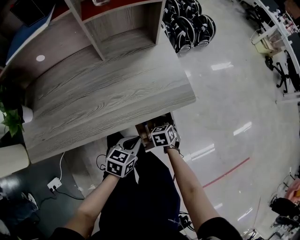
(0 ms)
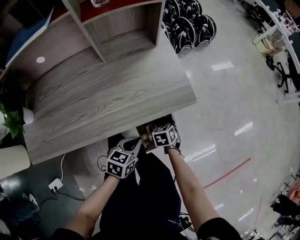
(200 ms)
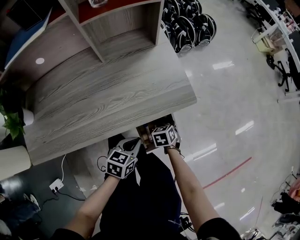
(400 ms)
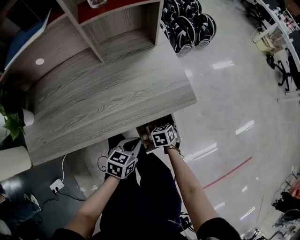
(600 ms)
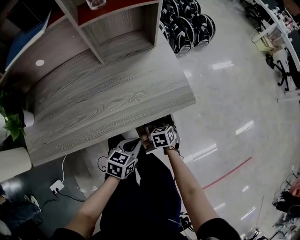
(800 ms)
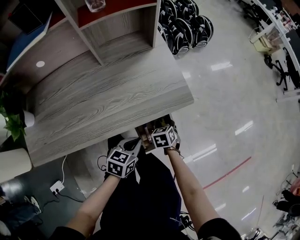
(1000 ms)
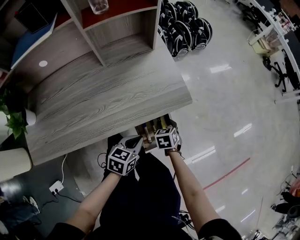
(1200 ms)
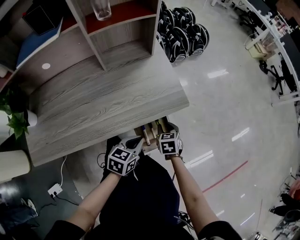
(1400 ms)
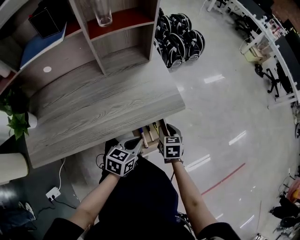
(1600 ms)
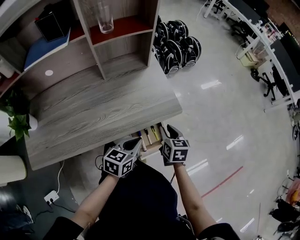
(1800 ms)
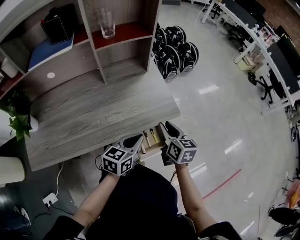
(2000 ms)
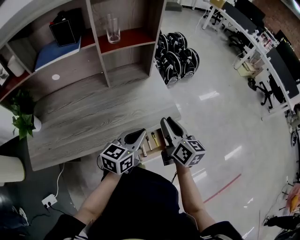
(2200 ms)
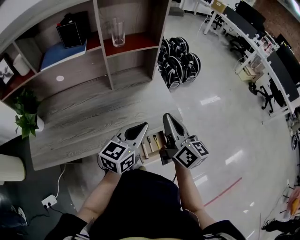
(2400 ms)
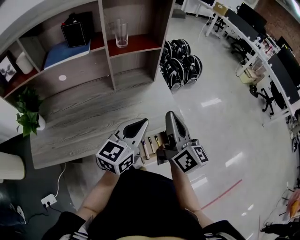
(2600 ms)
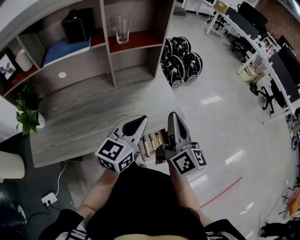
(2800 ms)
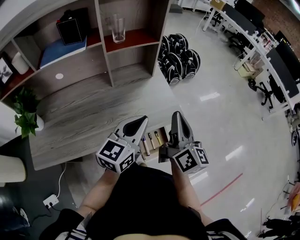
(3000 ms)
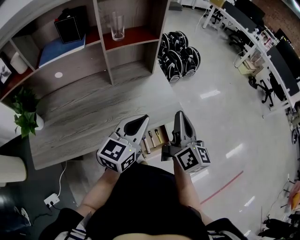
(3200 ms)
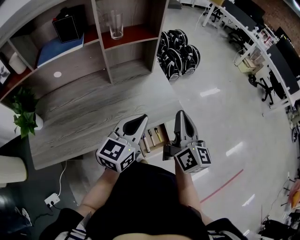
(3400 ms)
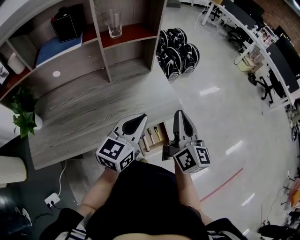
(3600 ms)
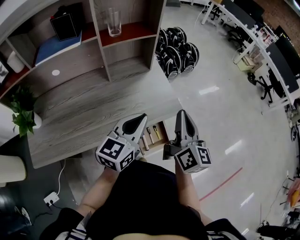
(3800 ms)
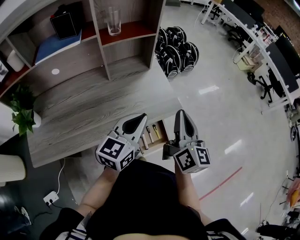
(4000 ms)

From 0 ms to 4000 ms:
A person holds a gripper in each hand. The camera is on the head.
From 0 ms to 1400 ms: The right gripper heads upward, covering some 5 cm.
From 1400 ms to 2600 ms: Both grippers move upward, about 30 cm. The left gripper tilts its fingers roughly 30 degrees upward, while the right gripper angles its fingers upward, by approximately 60 degrees, and closes.
From 2600 ms to 4000 ms: The right gripper travels to the right by approximately 5 cm.

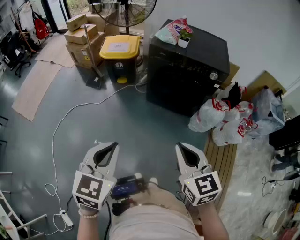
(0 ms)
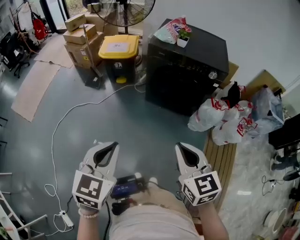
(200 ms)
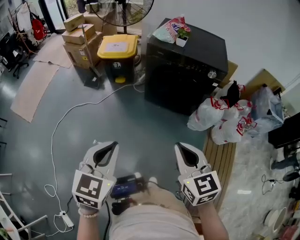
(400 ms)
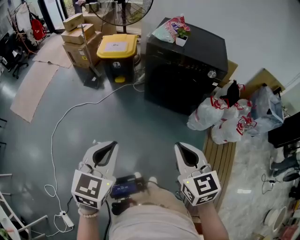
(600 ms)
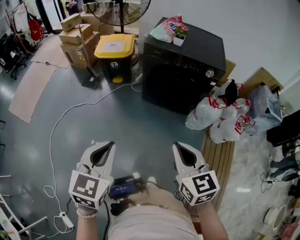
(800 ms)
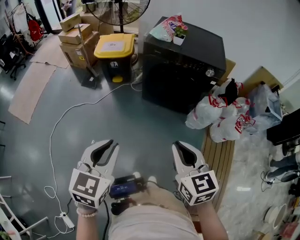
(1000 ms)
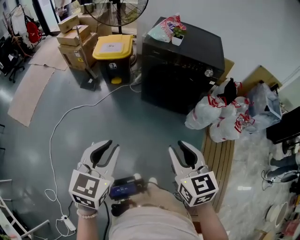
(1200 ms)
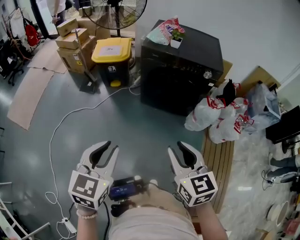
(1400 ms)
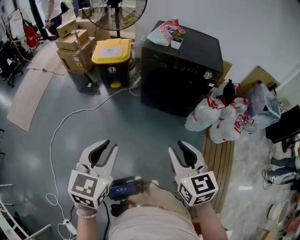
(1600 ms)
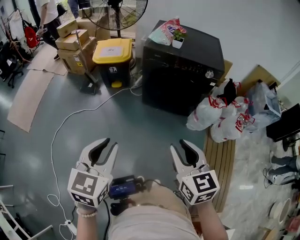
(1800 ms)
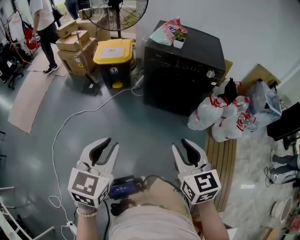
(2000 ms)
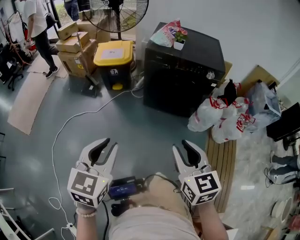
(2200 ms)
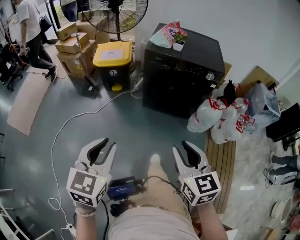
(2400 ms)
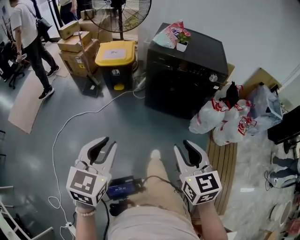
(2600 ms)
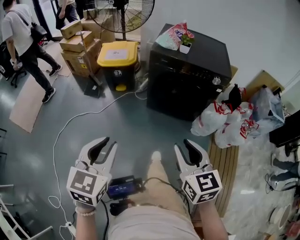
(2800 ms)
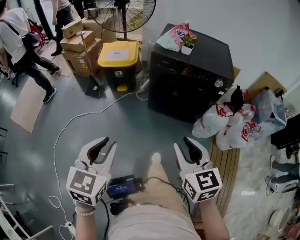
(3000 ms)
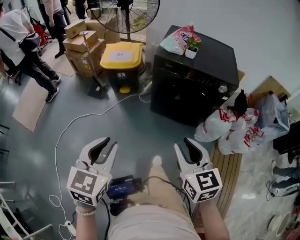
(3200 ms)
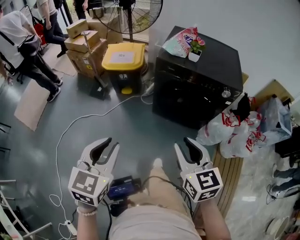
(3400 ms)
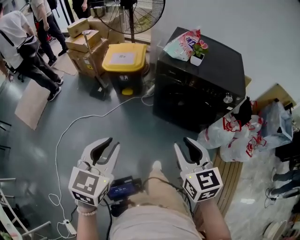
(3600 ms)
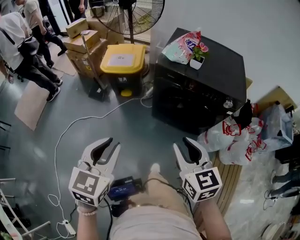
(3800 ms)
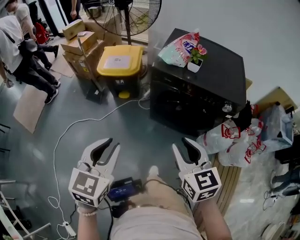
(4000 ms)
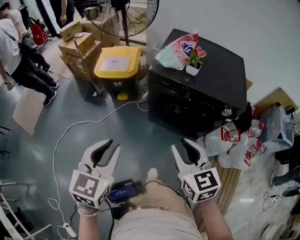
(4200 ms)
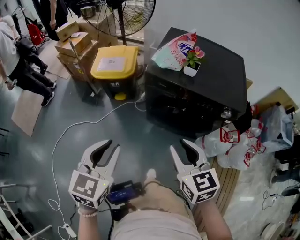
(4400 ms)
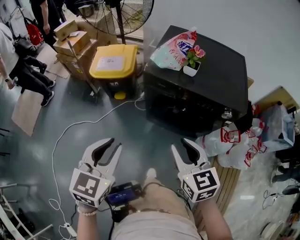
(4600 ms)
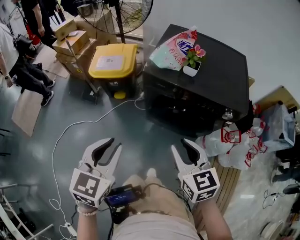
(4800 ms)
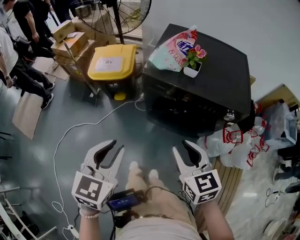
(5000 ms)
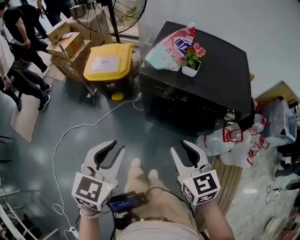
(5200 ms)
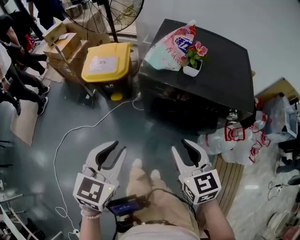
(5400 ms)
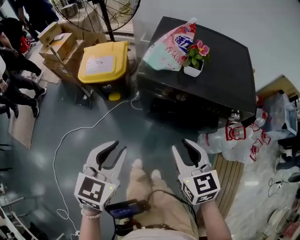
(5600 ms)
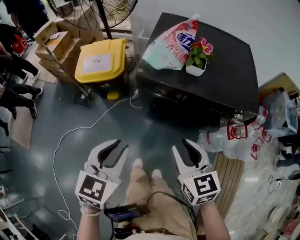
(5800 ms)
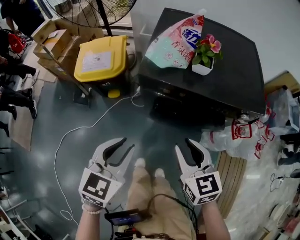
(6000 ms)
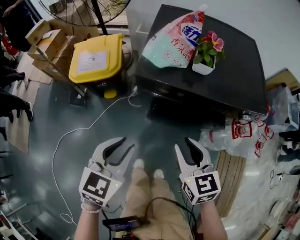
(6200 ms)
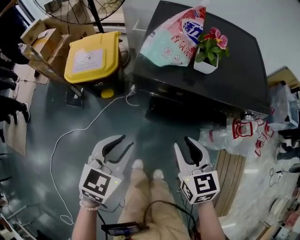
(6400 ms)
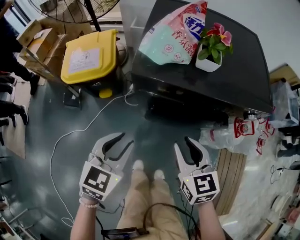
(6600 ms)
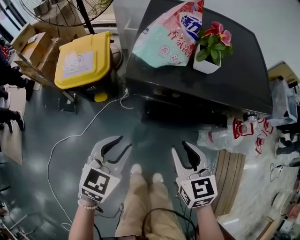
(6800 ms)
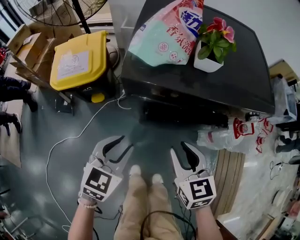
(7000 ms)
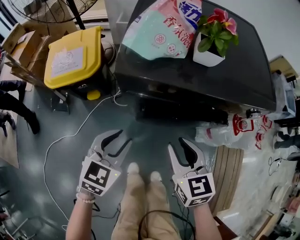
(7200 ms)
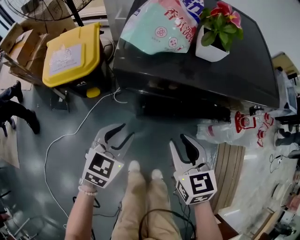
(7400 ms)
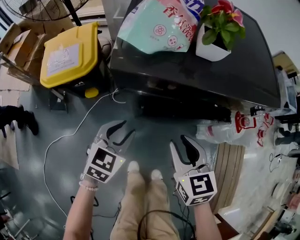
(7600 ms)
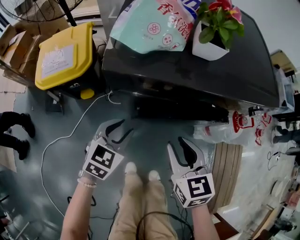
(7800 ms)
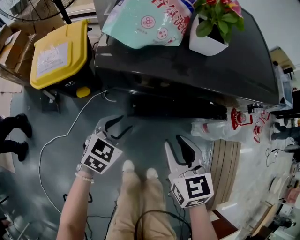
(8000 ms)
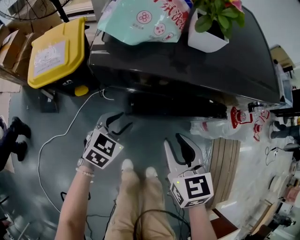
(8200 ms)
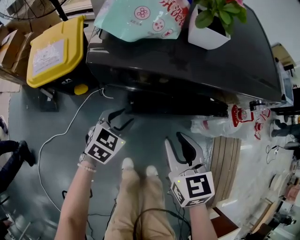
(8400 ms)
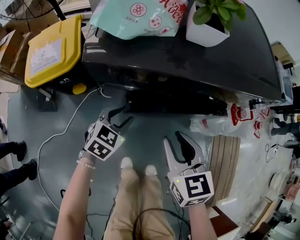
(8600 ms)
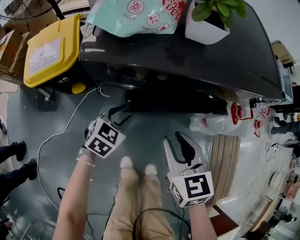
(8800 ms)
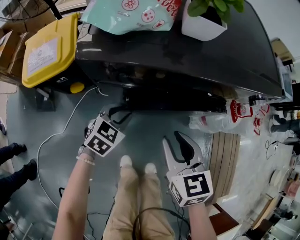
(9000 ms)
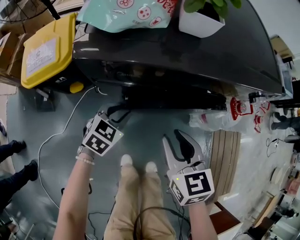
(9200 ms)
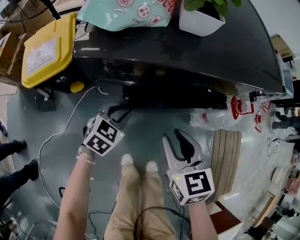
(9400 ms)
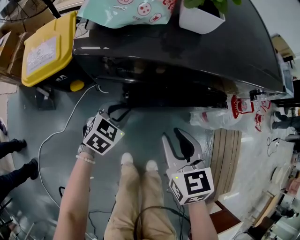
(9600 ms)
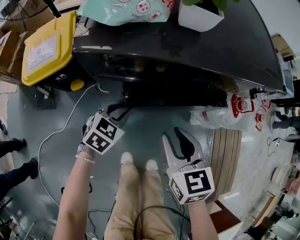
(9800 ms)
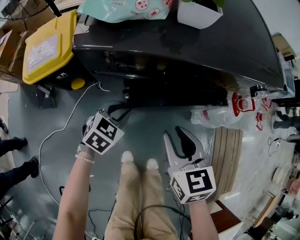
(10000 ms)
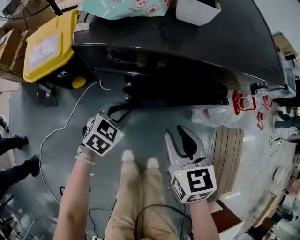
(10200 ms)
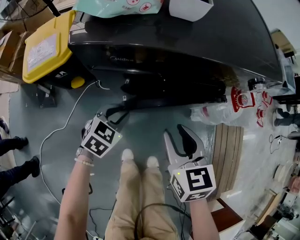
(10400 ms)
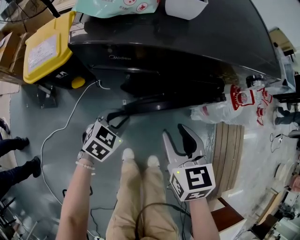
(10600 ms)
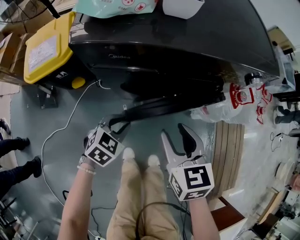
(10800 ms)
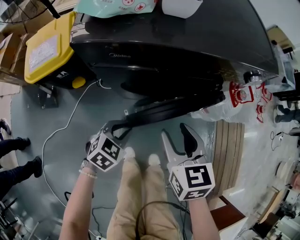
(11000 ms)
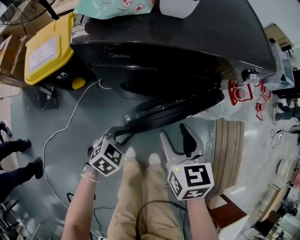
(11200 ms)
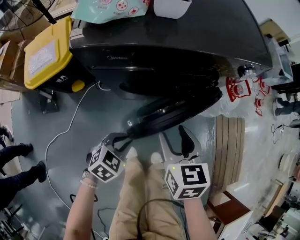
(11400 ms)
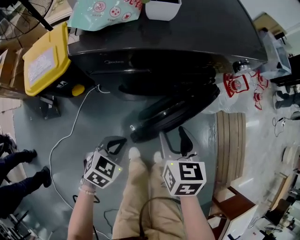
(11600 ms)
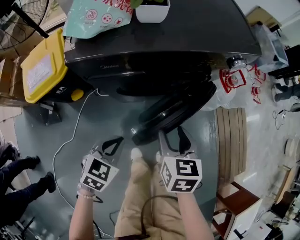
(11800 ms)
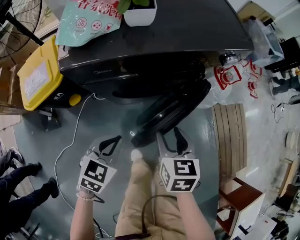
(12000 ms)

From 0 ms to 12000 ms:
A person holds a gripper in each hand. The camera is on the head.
From 0 ms to 1600 ms: The left gripper opens up; the right gripper opens its fingers.
From 1600 ms to 3000 ms: Both grippers travel together forward, about 5 cm.
From 3000 ms to 4400 ms: Both grippers travel together forward, roughly 20 cm.
From 4400 ms to 6000 ms: Both grippers move forward and downward, roughly 15 cm.
From 6000 ms to 7600 ms: The left gripper goes roughly 25 cm downward and forward, while the right gripper moves downward and forward, some 15 cm.
From 7600 ms to 9000 ms: The left gripper goes some 10 cm downward.
From 9000 ms to 10400 ms: There are only small adjustments of the grippers.
From 10400 ms to 12000 ms: The left gripper shifts some 15 cm upward and backward, and closes its fingers, while the right gripper turns by approximately 20 degrees, and opens.

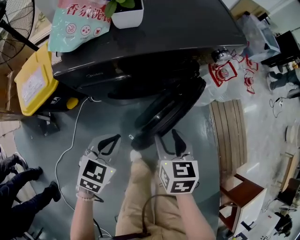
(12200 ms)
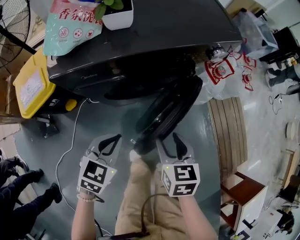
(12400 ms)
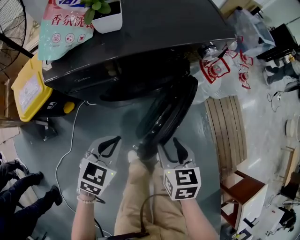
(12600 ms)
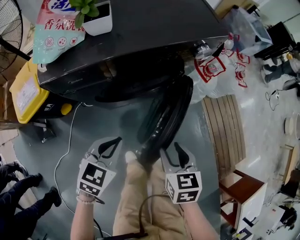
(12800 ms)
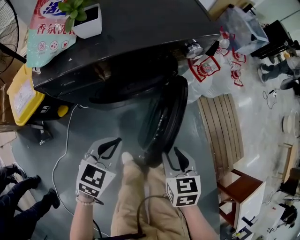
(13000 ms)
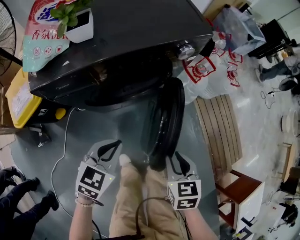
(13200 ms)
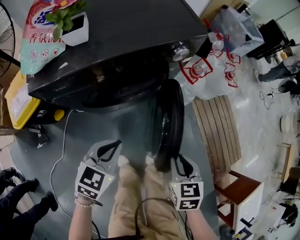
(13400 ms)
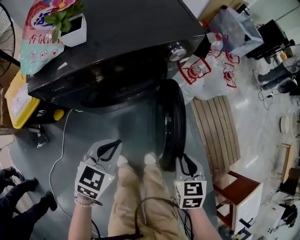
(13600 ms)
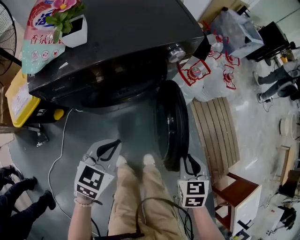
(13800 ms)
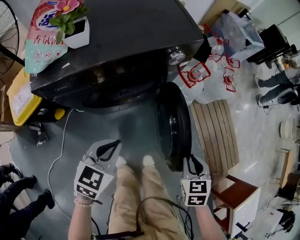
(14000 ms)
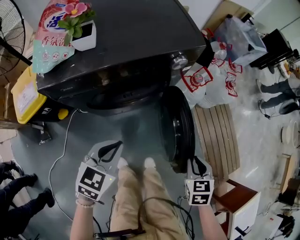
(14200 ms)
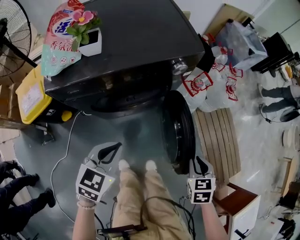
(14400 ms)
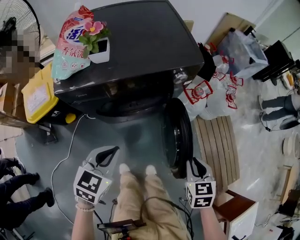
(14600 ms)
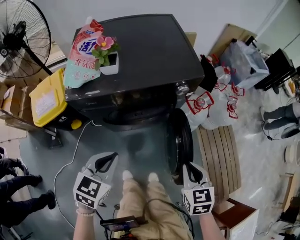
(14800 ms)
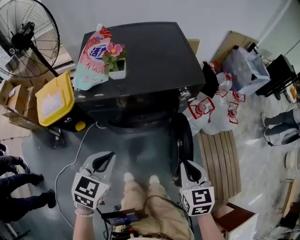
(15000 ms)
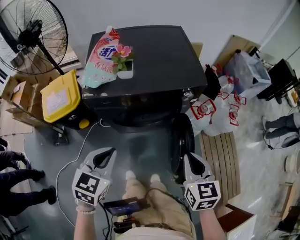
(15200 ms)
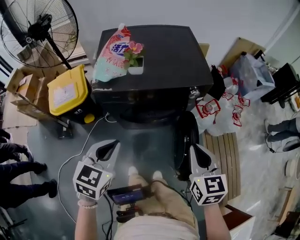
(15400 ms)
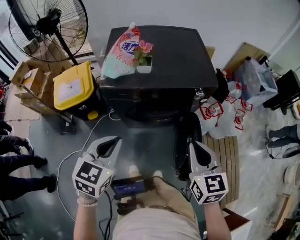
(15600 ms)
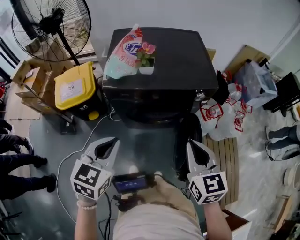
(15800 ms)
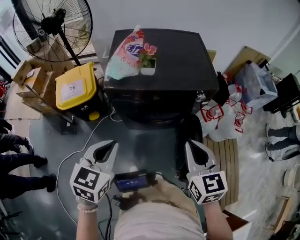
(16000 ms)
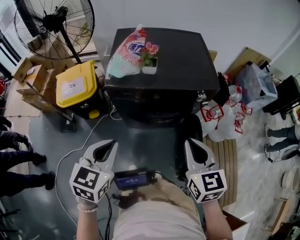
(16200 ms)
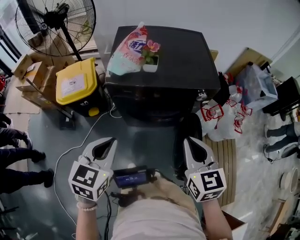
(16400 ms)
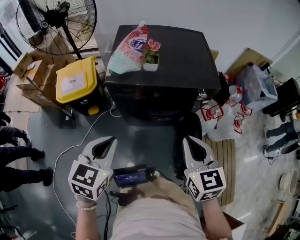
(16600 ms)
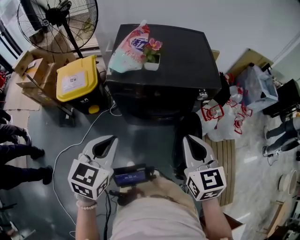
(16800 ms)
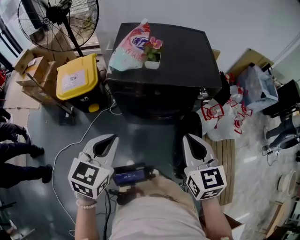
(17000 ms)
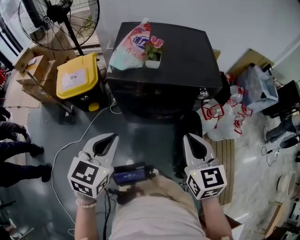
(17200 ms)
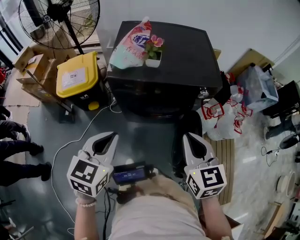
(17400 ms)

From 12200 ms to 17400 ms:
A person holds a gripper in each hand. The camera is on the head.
From 12200 ms to 14000 ms: The left gripper travels to the right and upward by some 15 cm. The right gripper travels to the right by roughly 25 cm, and closes up.
From 14000 ms to 15600 ms: The grippers both shift upward by approximately 25 cm. The left gripper turns by about 20 degrees. The right gripper changes its angle by approximately 40 degrees.
From 15600 ms to 17400 ms: The right gripper changes place by about 5 cm.

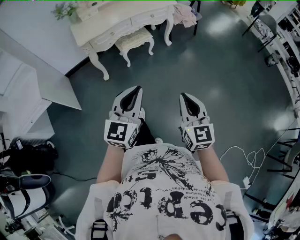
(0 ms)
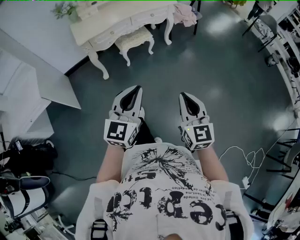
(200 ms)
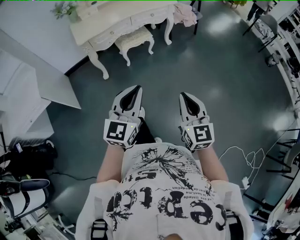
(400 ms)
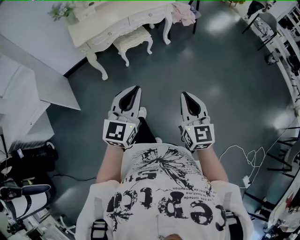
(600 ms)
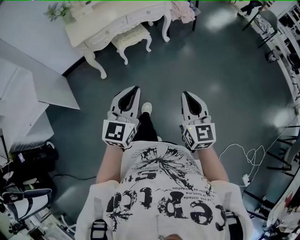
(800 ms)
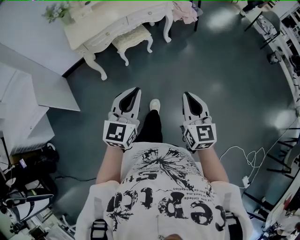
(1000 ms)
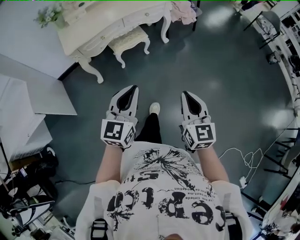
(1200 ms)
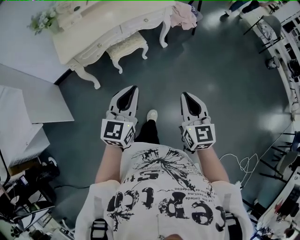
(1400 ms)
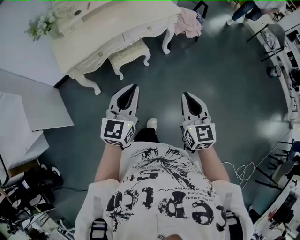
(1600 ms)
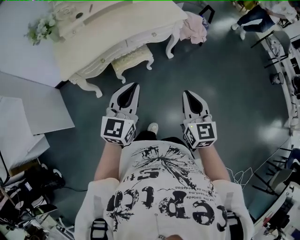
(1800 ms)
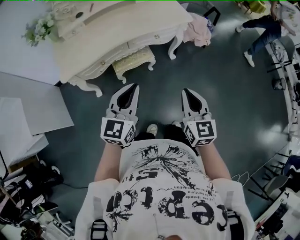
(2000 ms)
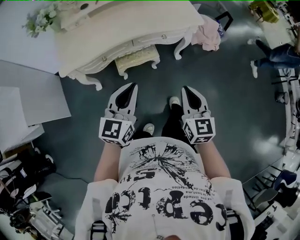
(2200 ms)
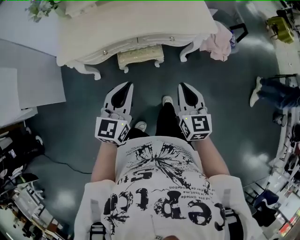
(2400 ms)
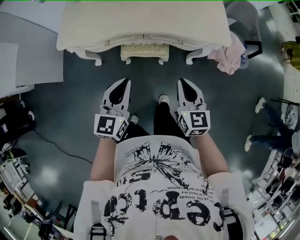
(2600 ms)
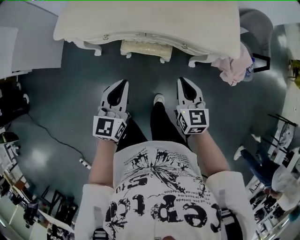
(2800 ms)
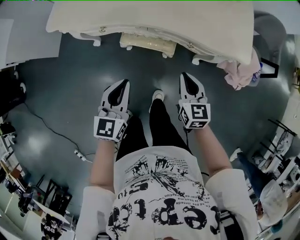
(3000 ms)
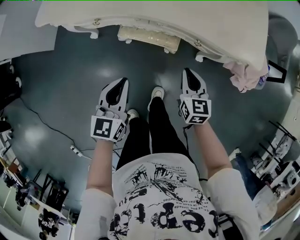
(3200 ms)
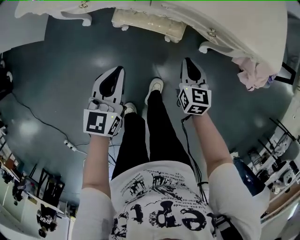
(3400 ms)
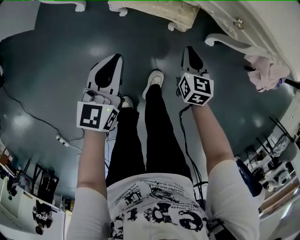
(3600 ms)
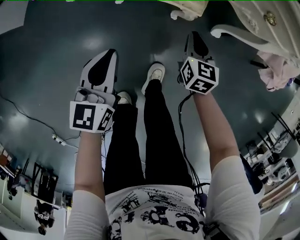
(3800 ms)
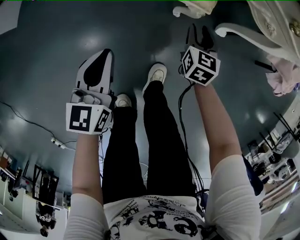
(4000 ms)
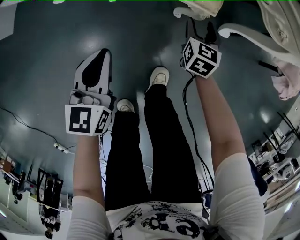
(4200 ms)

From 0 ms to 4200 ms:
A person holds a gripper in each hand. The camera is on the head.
From 0 ms to 1400 ms: Both grippers move forward, approximately 20 cm.
From 1400 ms to 2800 ms: The left gripper changes place by about 35 cm, and swivels about 40 degrees. Meanwhile the right gripper shifts by roughly 50 cm, and turns by roughly 40 degrees.
From 2800 ms to 4200 ms: The grippers both shift downward by roughly 50 cm. The right gripper opens up.
